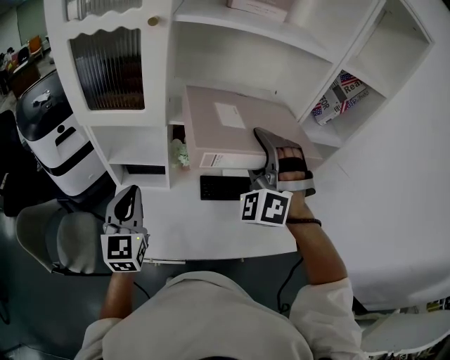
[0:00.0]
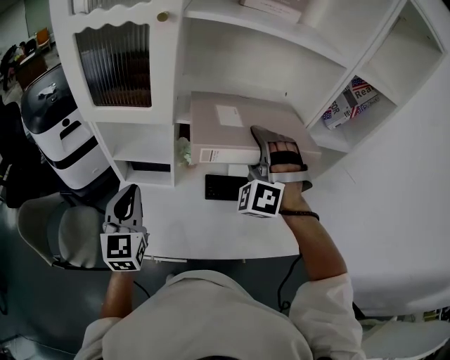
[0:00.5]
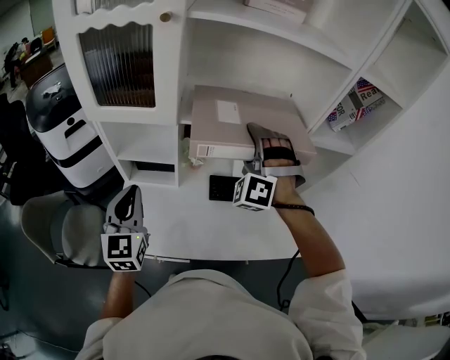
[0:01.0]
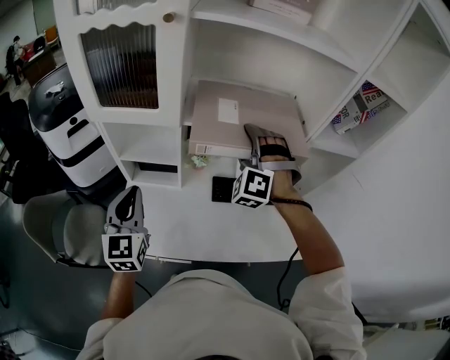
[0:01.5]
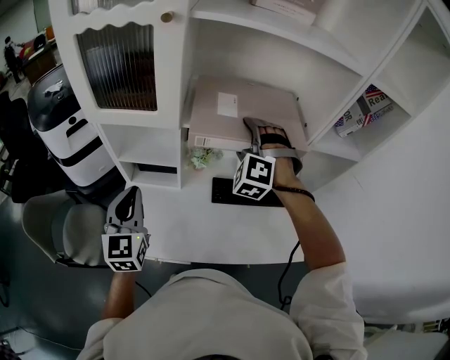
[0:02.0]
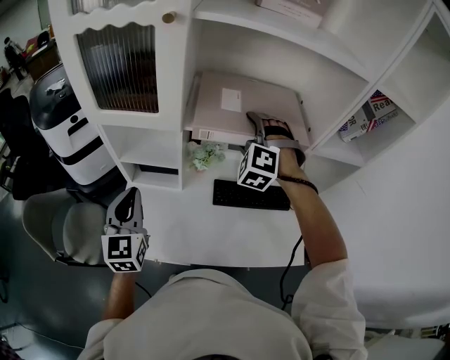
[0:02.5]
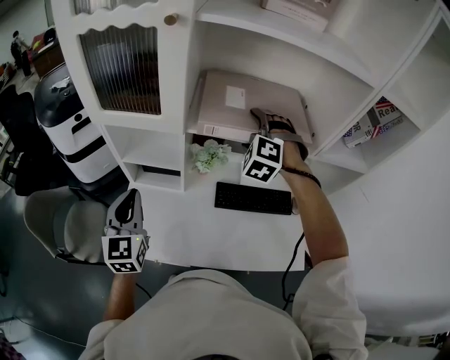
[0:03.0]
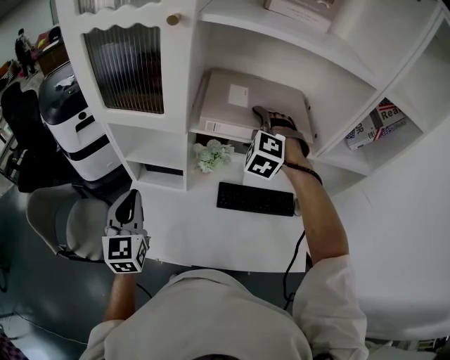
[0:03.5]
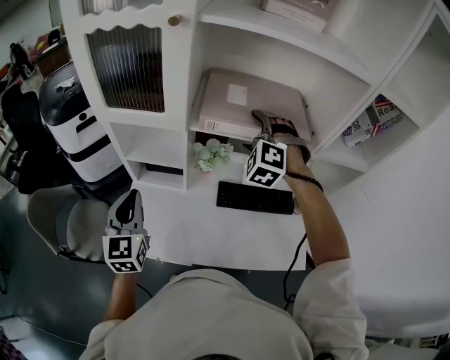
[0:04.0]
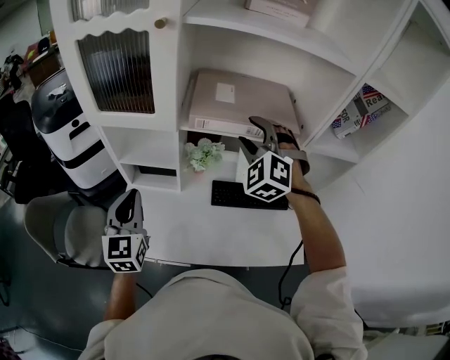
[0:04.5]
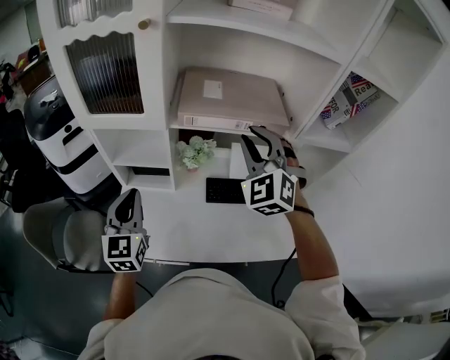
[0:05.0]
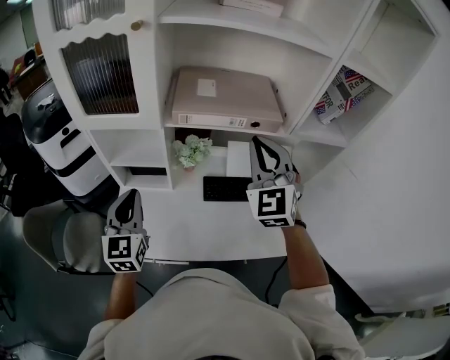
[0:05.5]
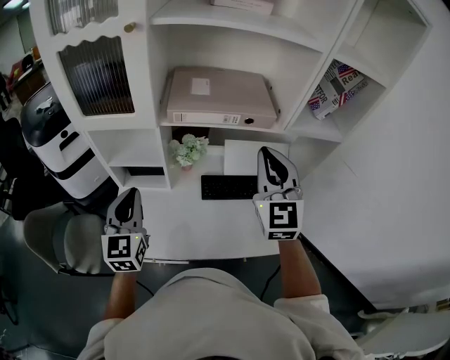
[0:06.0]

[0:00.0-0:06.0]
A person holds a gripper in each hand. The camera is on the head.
0.0 to 2.0 s: The right gripper shifts approximately 15 cm forward and downward, and swivels some 20 degrees.
2.0 to 4.0 s: The grippers stay close to where they were, moving slightly.
4.0 to 6.0 s: The left gripper is displaced to the right by about 5 cm, while the right gripper is displaced backward, upward and to the right by roughly 20 cm, rolls clockwise, seen from behind, by some 50 degrees, and closes its fingers.

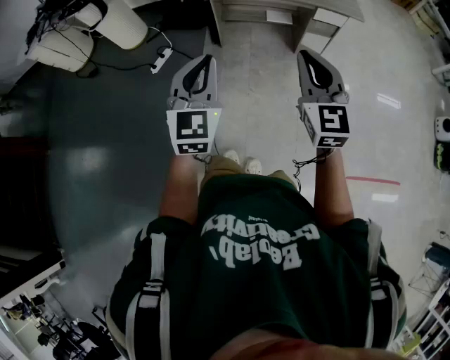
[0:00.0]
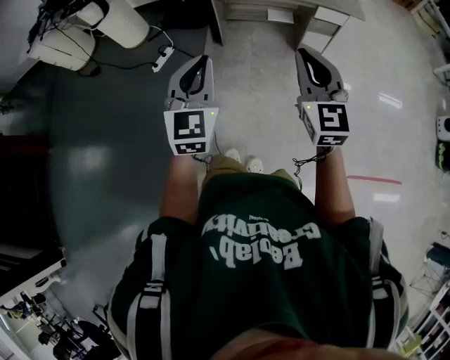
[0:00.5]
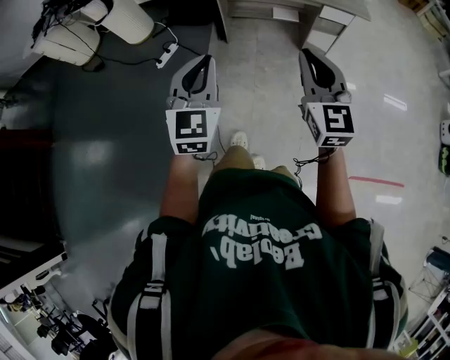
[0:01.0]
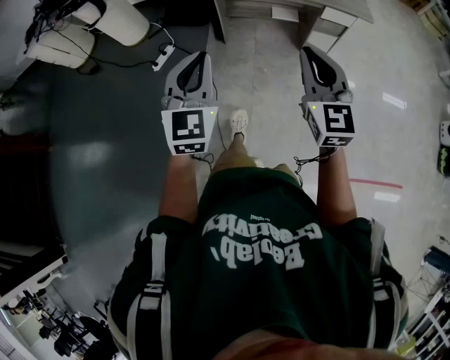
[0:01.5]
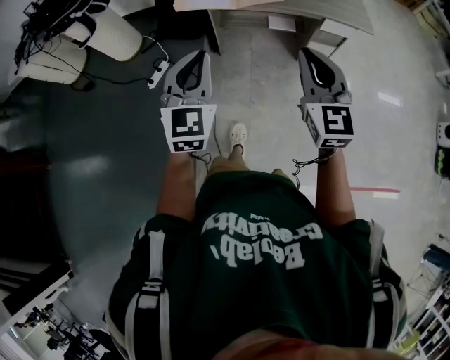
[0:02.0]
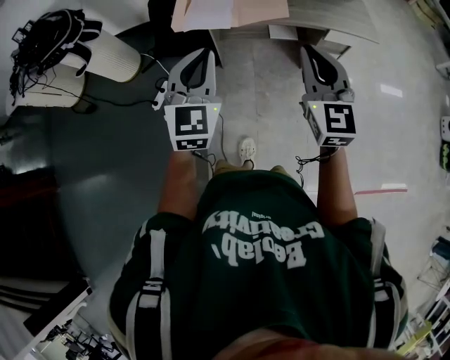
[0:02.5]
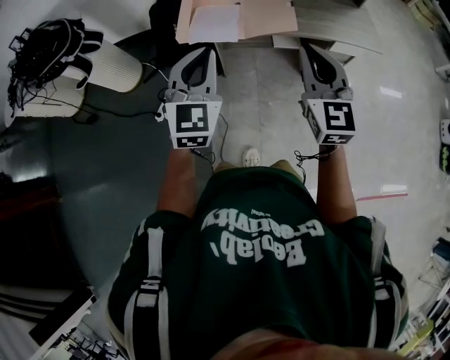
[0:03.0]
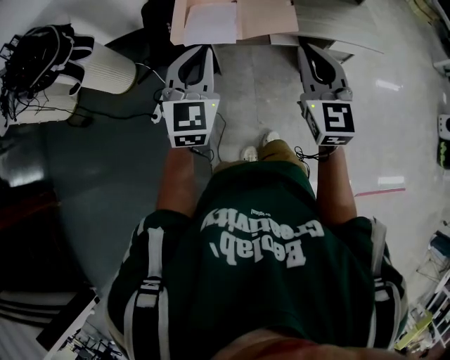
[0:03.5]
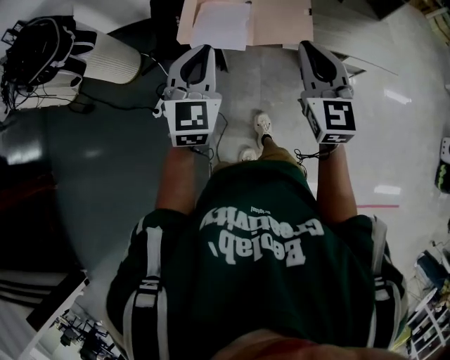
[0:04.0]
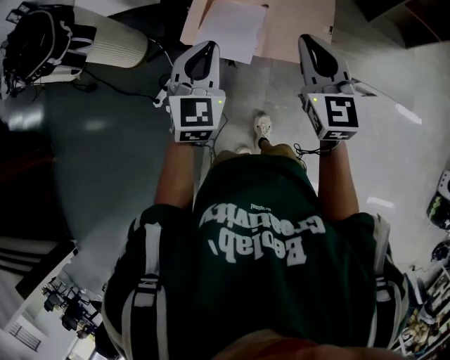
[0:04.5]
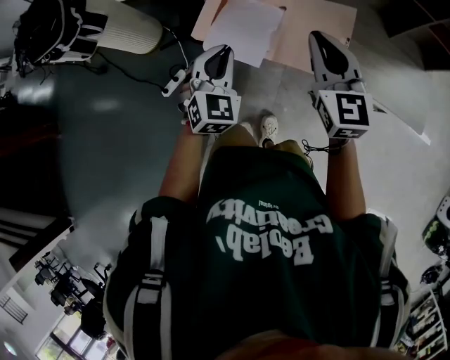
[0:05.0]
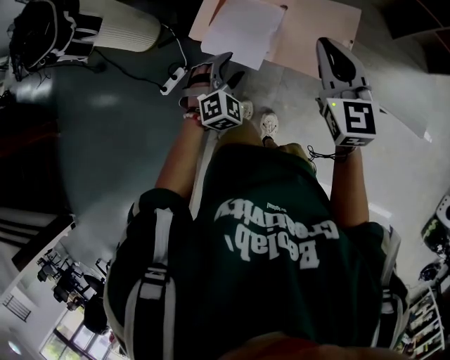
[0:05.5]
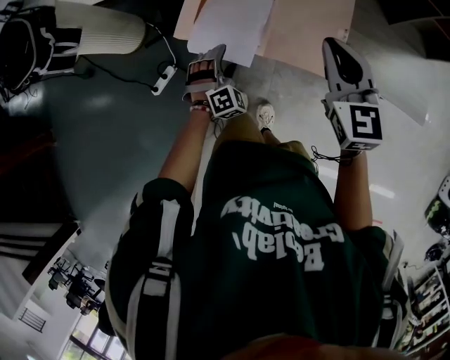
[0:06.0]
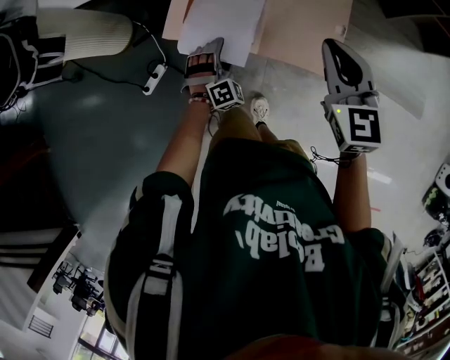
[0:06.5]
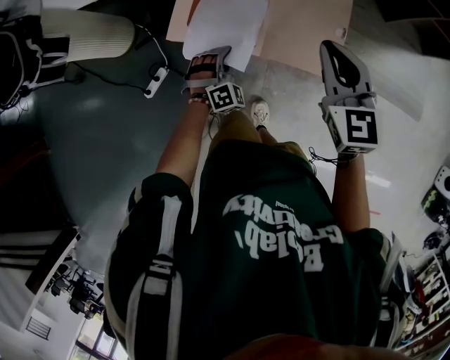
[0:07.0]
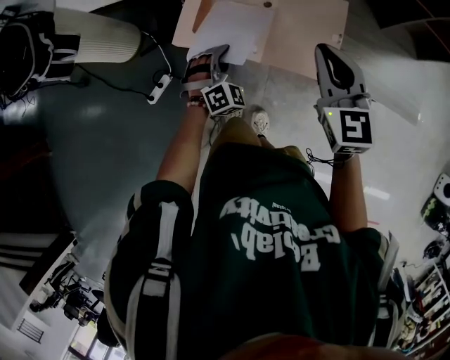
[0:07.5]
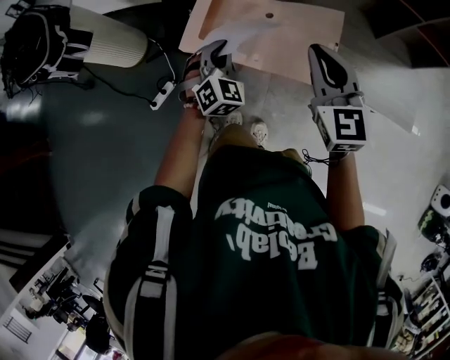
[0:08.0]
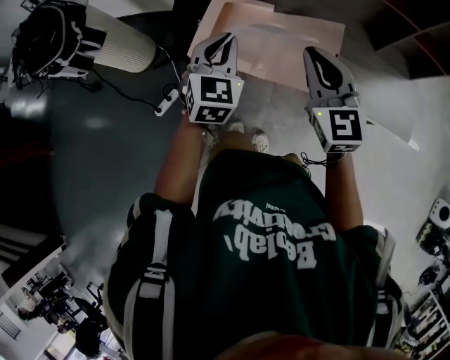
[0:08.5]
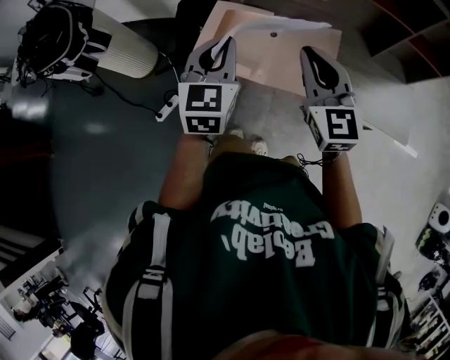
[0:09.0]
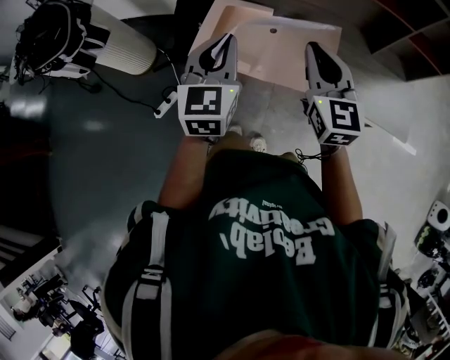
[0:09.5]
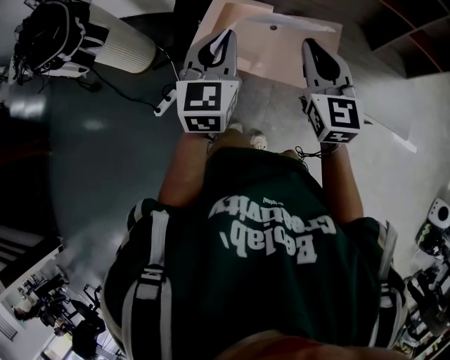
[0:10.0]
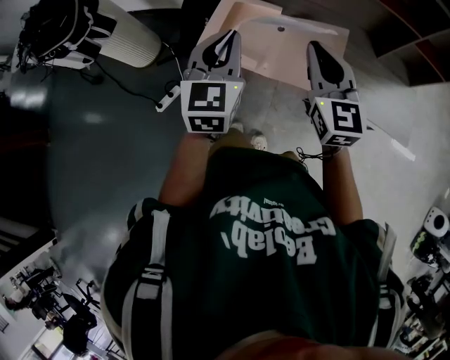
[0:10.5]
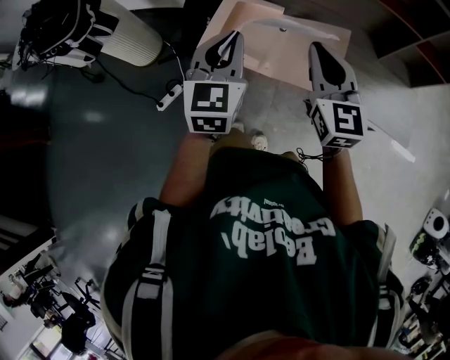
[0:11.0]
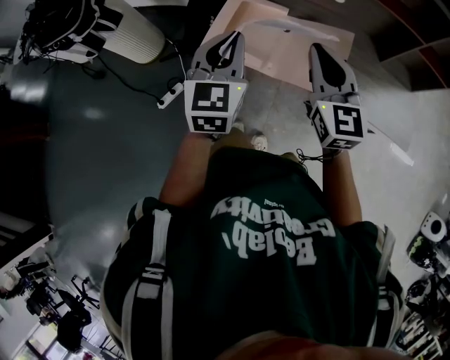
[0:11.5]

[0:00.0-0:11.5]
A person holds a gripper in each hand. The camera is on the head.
0.0 to 2.0 s: Both grippers travel together forward, roughly 20 cm.
2.0 to 4.0 s: The two grippers go approximately 35 cm forward.
4.0 to 6.0 s: The left gripper is displaced downward and forward by approximately 35 cm, turns by roughly 60 degrees, and opens, while the right gripper shifts roughly 25 cm forward and downward.
6.0 to 7.5 s: The left gripper is displaced upward by some 5 cm, and closes its fingers.
7.5 to 9.5 s: The right gripper heads upward, covering approximately 5 cm; the left gripper travels upward by some 25 cm, and rotates around the line of its fingers by approximately 50 degrees, counterclockwise from behind.
9.5 to 11.5 s: The grippers make only small movements.

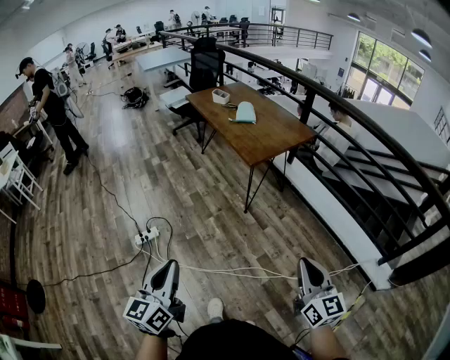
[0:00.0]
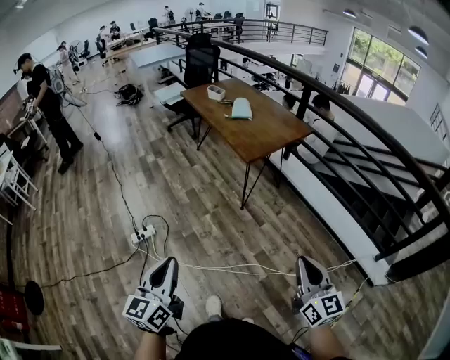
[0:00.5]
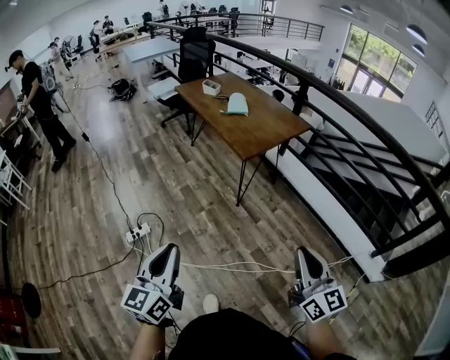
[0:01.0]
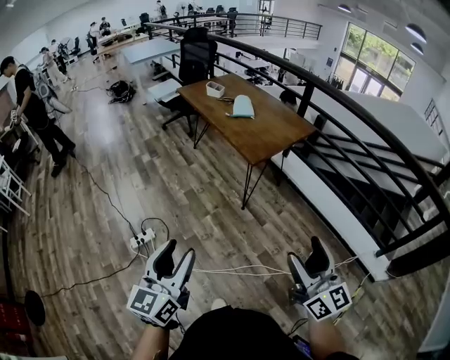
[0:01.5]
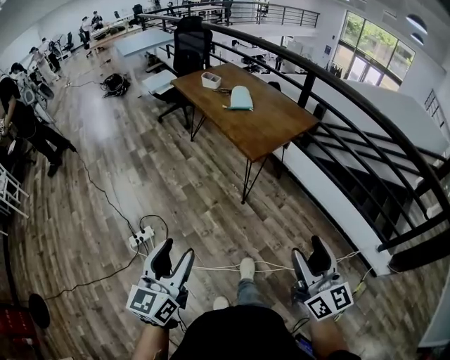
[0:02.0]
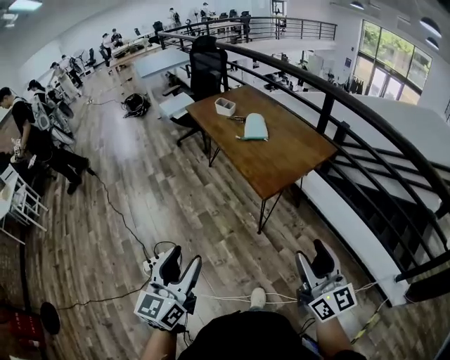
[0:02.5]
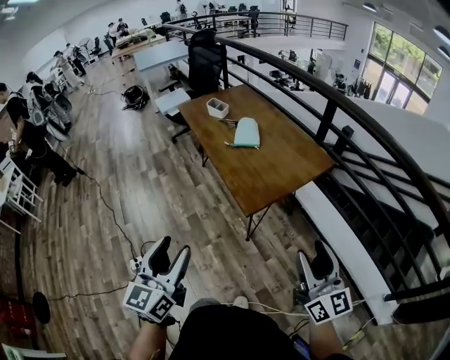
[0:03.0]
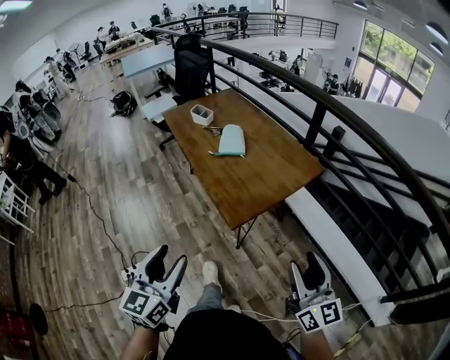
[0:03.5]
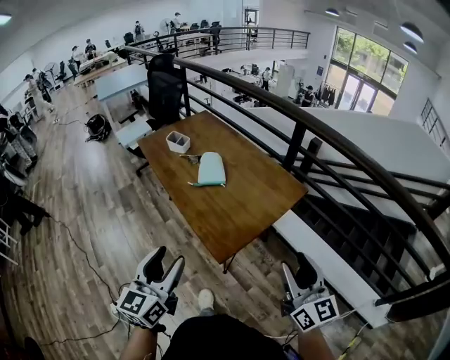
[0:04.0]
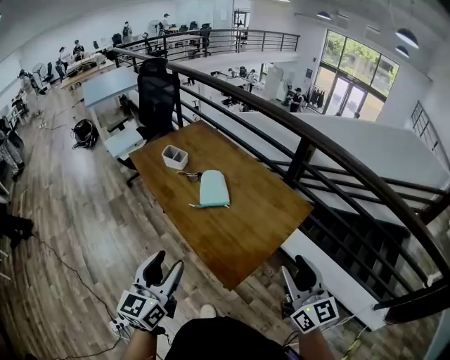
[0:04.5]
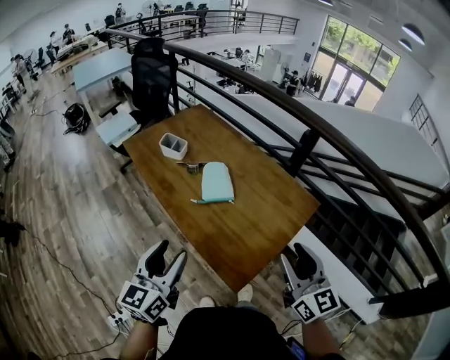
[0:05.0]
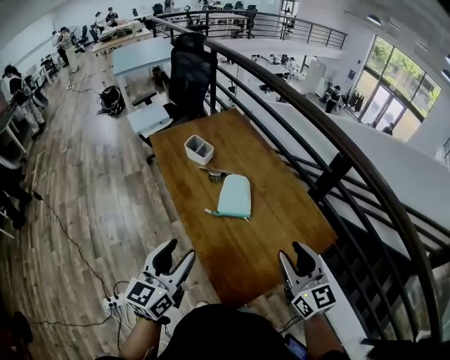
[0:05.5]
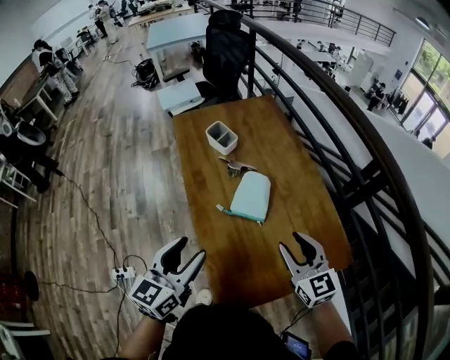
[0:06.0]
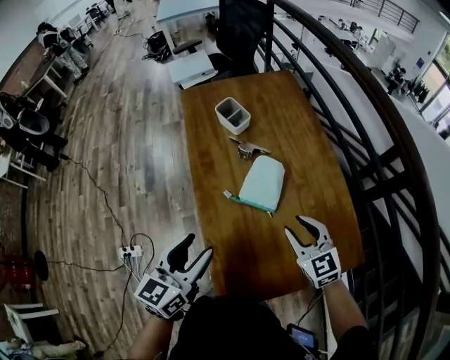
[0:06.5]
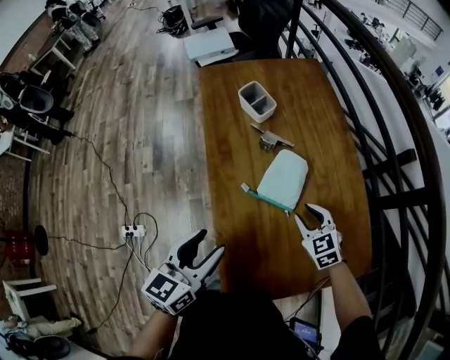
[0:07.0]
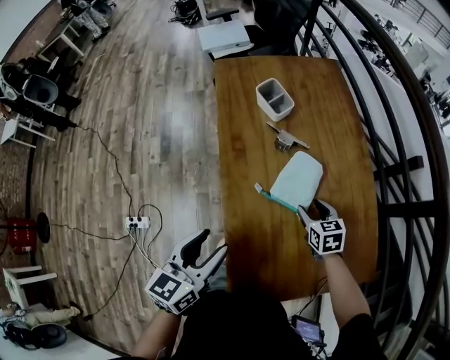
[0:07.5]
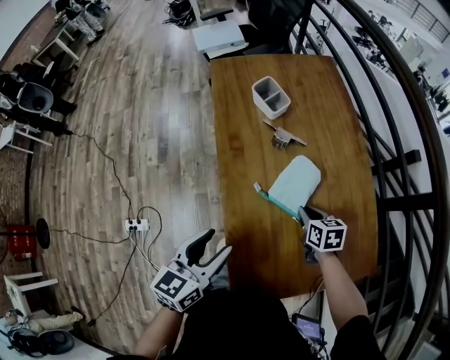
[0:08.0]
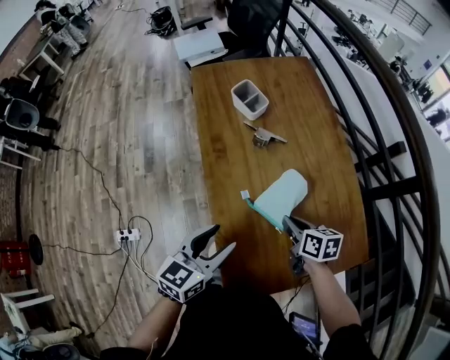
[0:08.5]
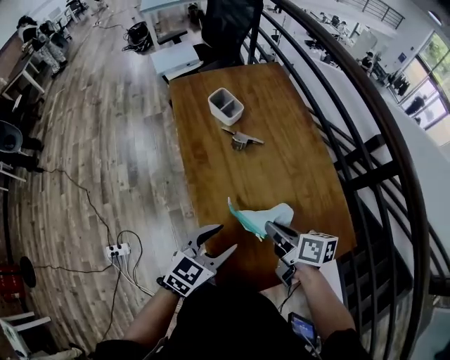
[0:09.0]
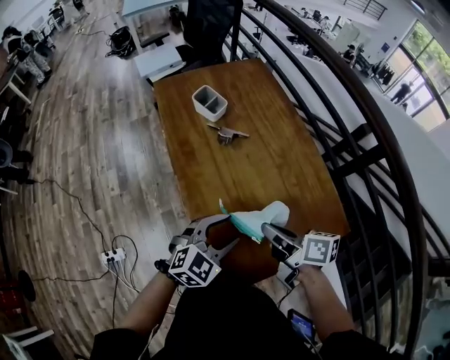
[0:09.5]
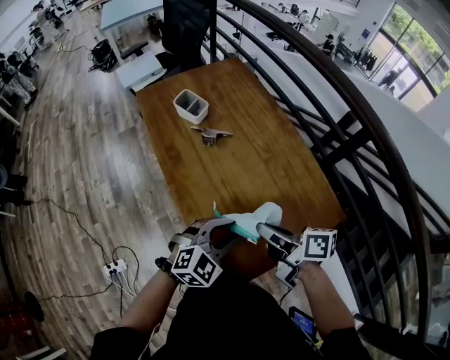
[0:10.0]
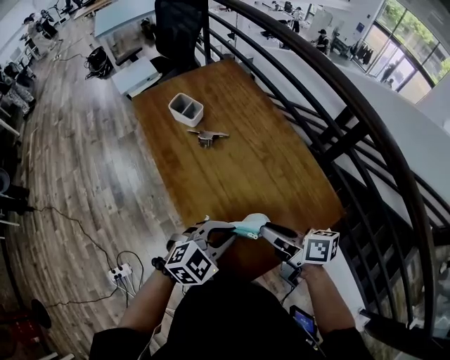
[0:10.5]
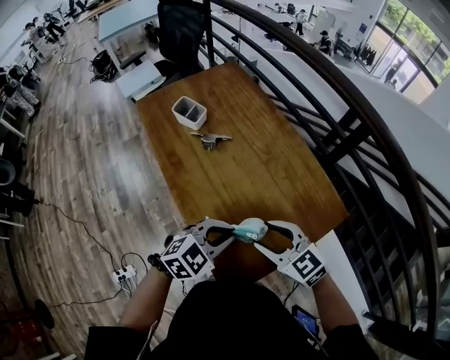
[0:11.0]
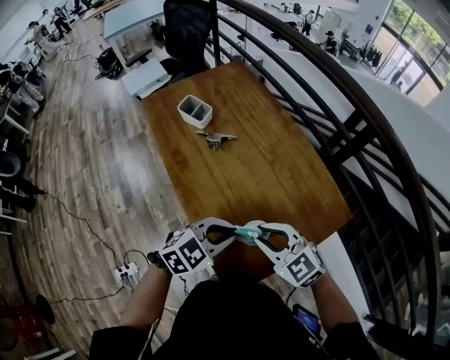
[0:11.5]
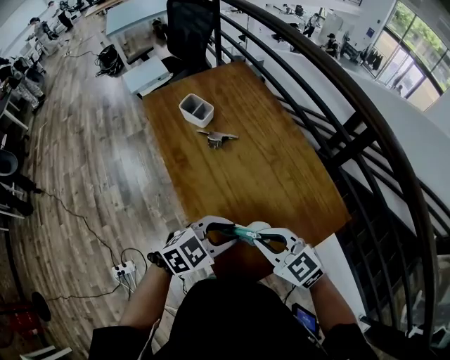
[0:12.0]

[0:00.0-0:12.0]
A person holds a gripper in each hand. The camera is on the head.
0.0 to 2.0 s: The left gripper goes approximately 15 cm forward, and opens. Meanwhile the right gripper heads forward and to the left, covering roughly 10 cm, and opens.
2.0 to 4.0 s: The two grippers travel together, forward, some 40 cm.
4.0 to 6.0 s: Both grippers travel together forward, roughly 30 cm. The right gripper rotates about 40 degrees.
6.0 to 8.0 s: The right gripper heads downward and forward, covering about 25 cm, tips its fingers downward by approximately 40 degrees, and closes. The left gripper moves downward, roughly 10 cm.
8.0 to 10.0 s: The right gripper goes roughly 25 cm upward and backward, and tilts its fingers about 30 degrees upward. The left gripper moves to the right, some 15 cm, twists roughly 60 degrees clockwise, seen from behind, and closes up.
10.0 to 12.0 s: The left gripper turns by some 20 degrees; the right gripper twists approximately 70 degrees counterclockwise, seen from behind, and opens, then closes again.
